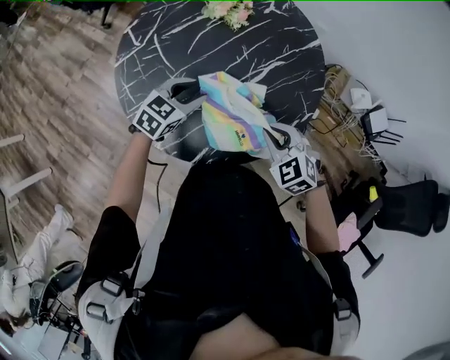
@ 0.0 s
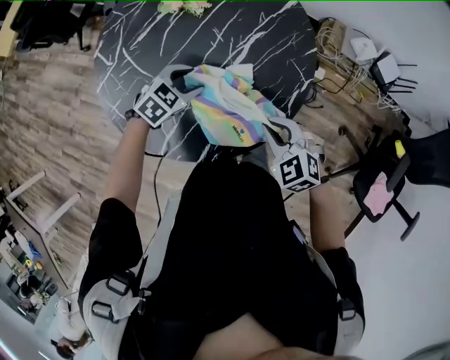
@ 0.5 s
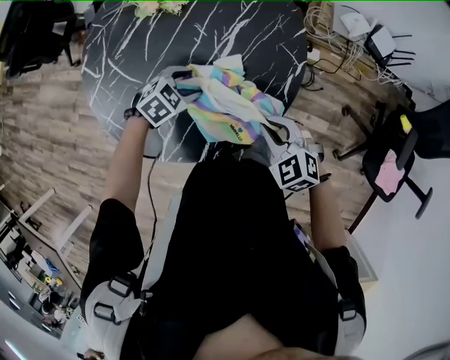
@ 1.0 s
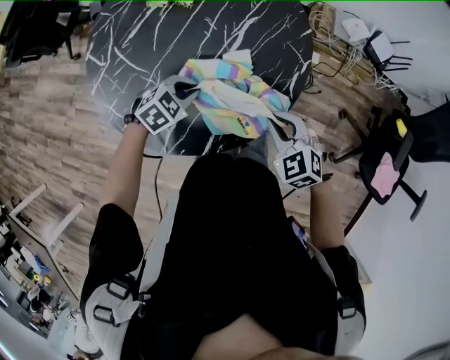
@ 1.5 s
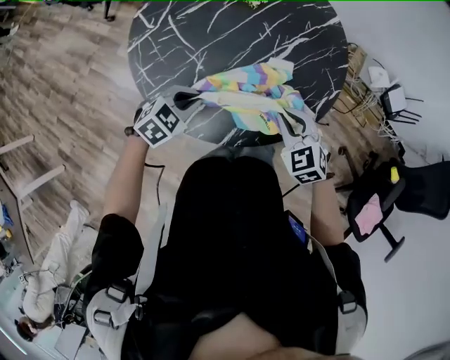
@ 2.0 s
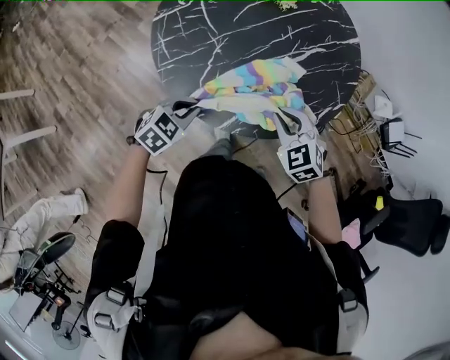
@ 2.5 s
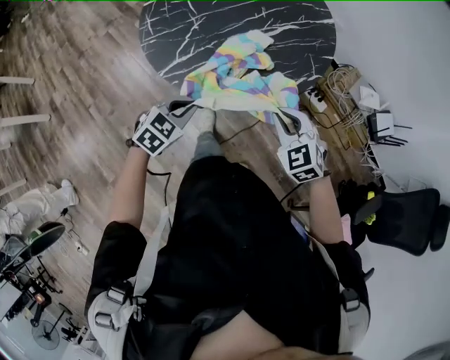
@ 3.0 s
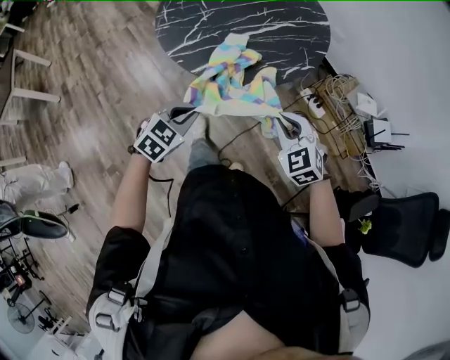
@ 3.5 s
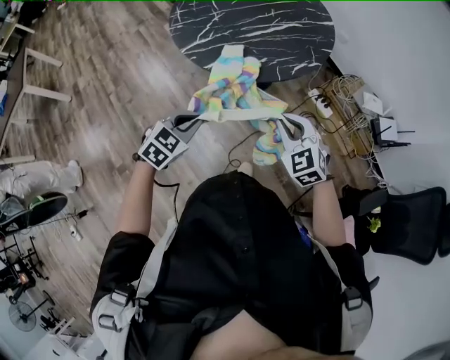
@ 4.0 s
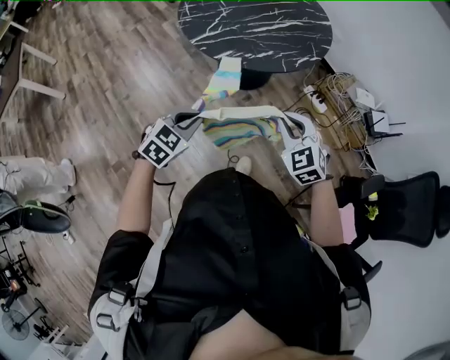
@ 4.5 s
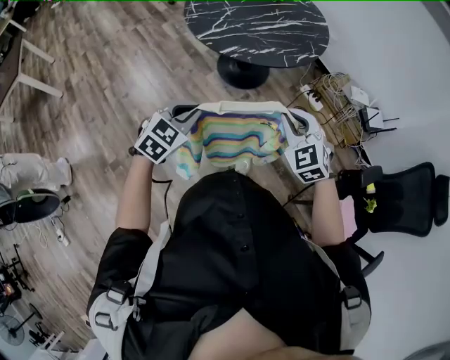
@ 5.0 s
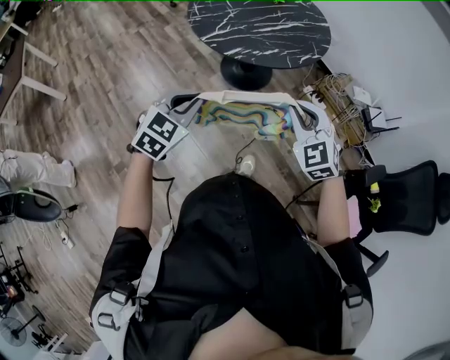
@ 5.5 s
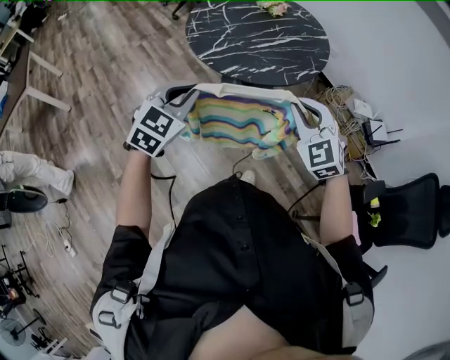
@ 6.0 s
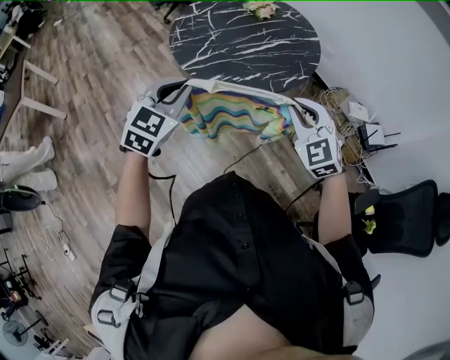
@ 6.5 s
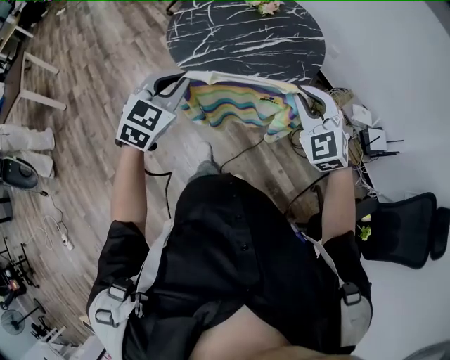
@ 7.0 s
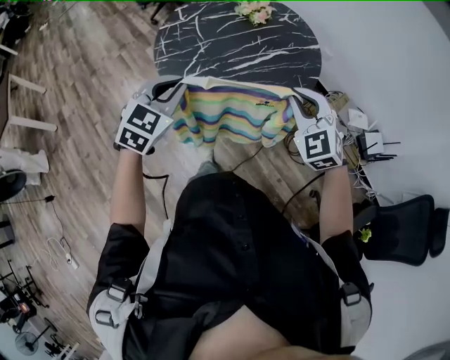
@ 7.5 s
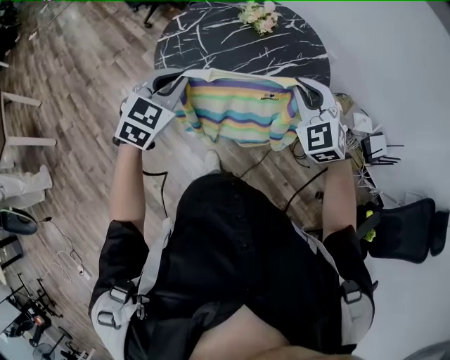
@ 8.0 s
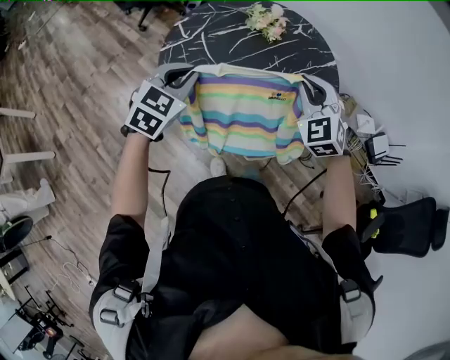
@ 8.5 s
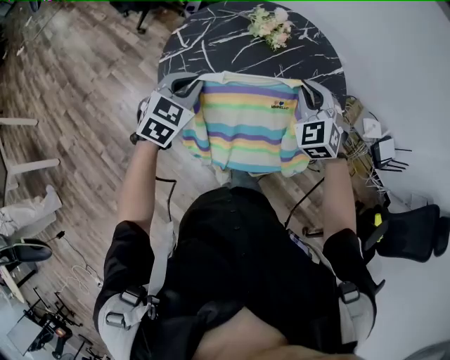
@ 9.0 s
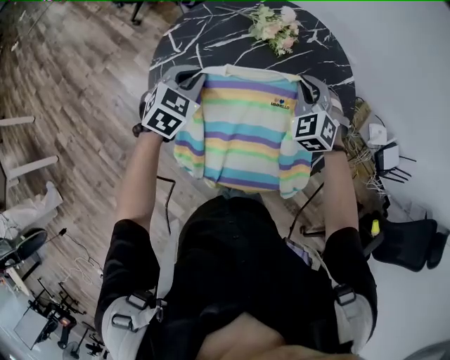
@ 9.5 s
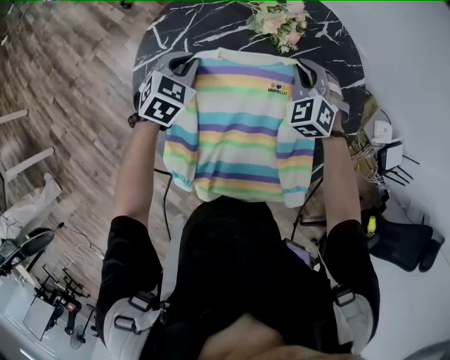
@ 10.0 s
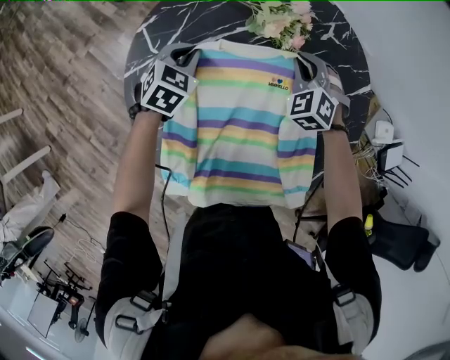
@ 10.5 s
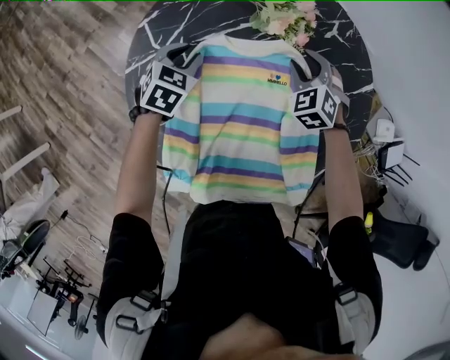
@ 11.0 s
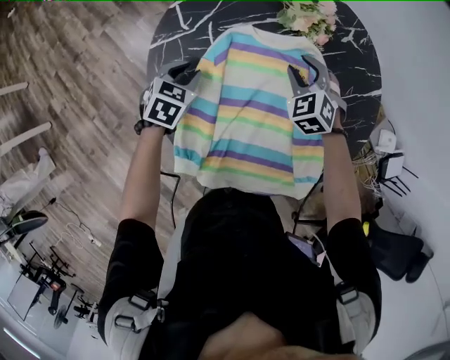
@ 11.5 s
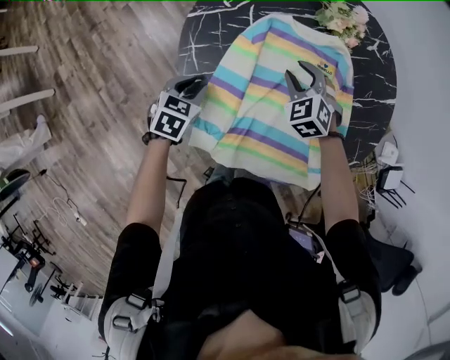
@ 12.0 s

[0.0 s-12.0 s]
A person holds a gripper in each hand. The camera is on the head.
0.0 to 2.0 s: The left gripper changes place by some 15 cm, rotates roughly 20 degrees, and closes, while the right gripper changes place by approximately 5 cm.
2.0 to 4.0 s: The left gripper moves some 40 cm, and rotates roughly 30 degrees. Meanwhile the right gripper shifts by roughly 30 cm, and turns by some 20 degrees.
4.0 to 6.0 s: Both grippers travel together upward and to the left, some 15 cm. The left gripper swivels about 20 degrees.
6.0 to 8.0 s: Both grippers travel together forward, approximately 35 cm.
8.0 to 10.0 s: Both grippers move forward and downward, roughly 40 cm.
10.0 to 12.0 s: The right gripper heads to the left and backward, covering about 20 cm, and opens up. The left gripper travels backward and to the left by roughly 25 cm, swivels roughly 30 degrees, and opens its fingers.

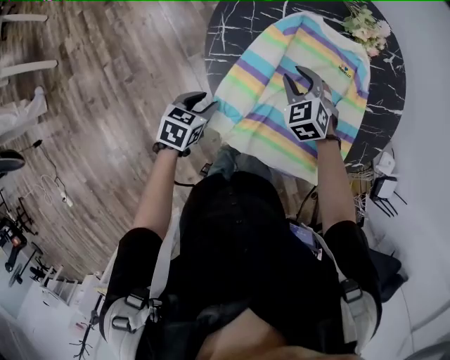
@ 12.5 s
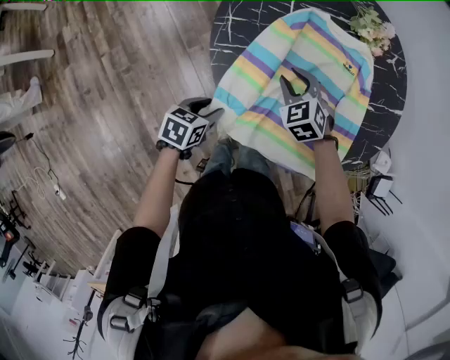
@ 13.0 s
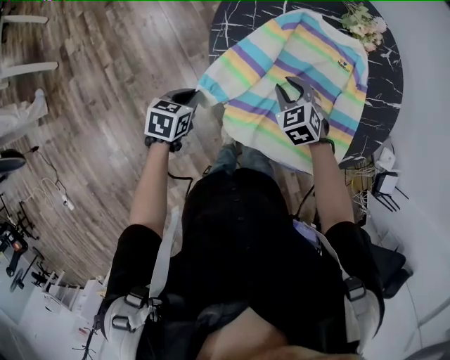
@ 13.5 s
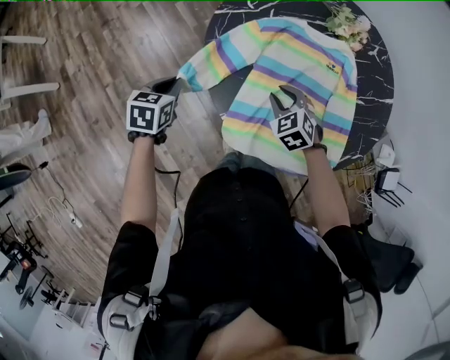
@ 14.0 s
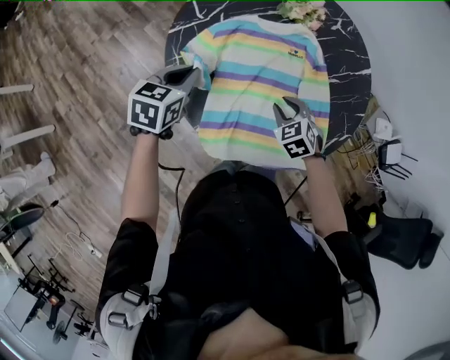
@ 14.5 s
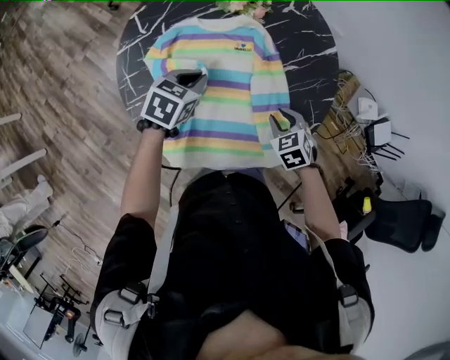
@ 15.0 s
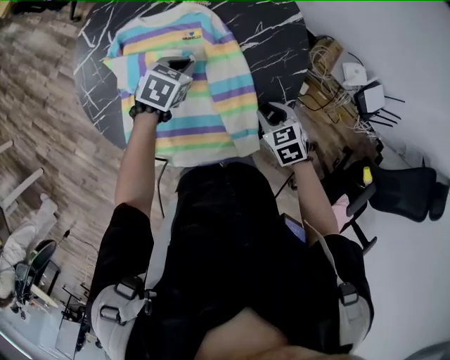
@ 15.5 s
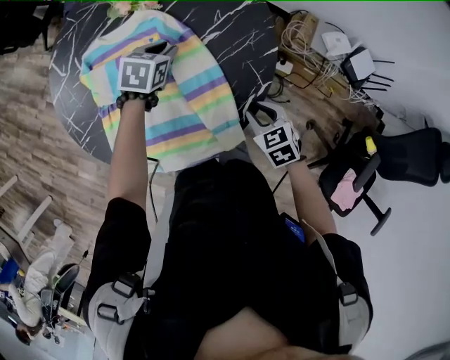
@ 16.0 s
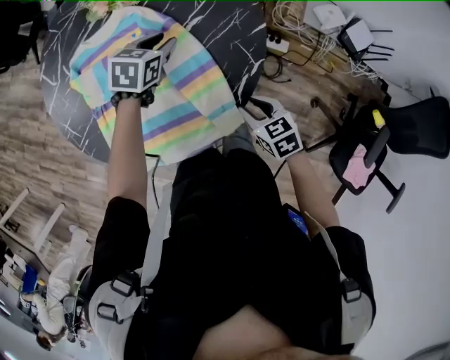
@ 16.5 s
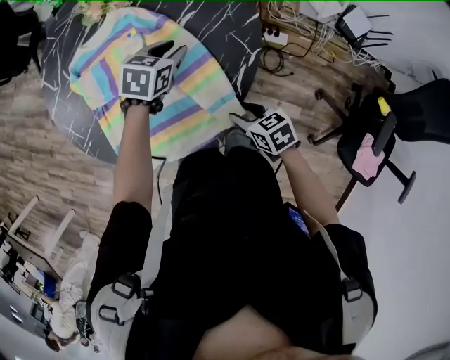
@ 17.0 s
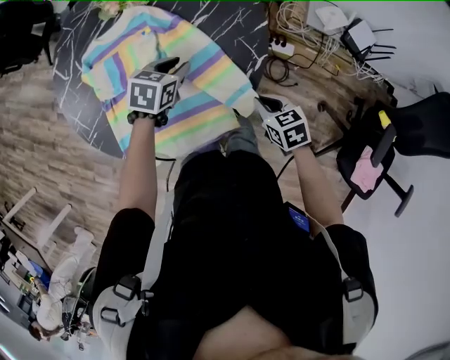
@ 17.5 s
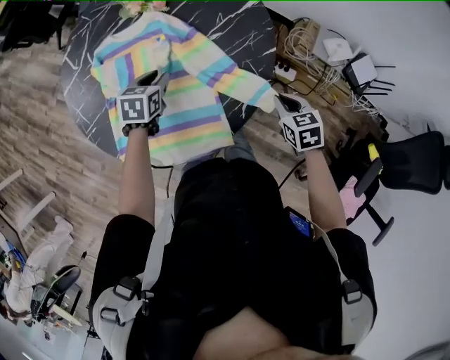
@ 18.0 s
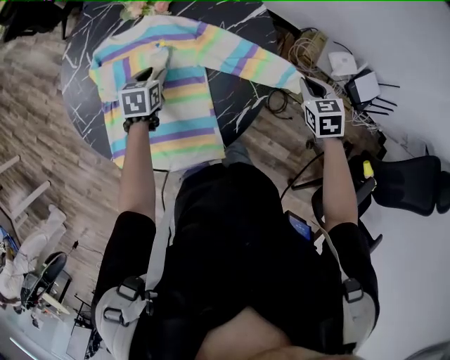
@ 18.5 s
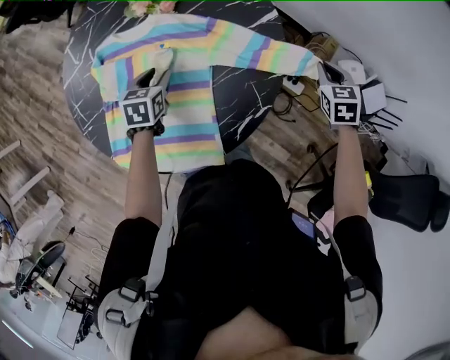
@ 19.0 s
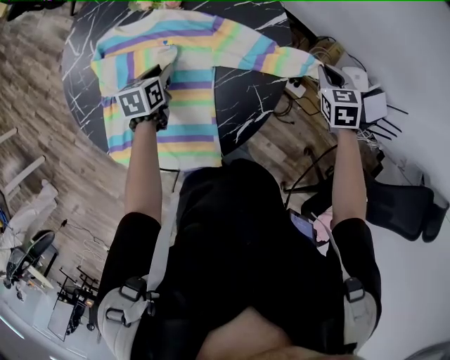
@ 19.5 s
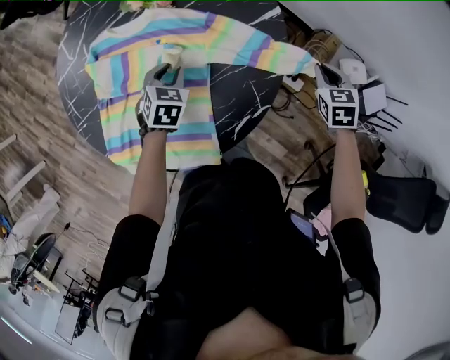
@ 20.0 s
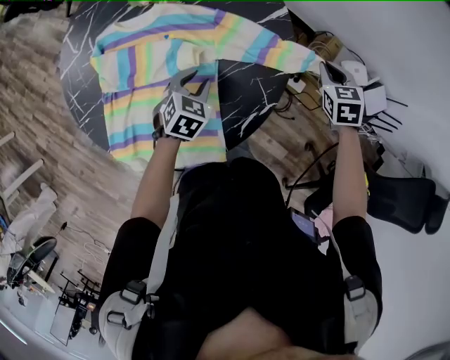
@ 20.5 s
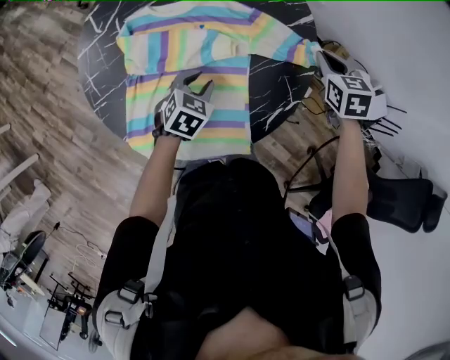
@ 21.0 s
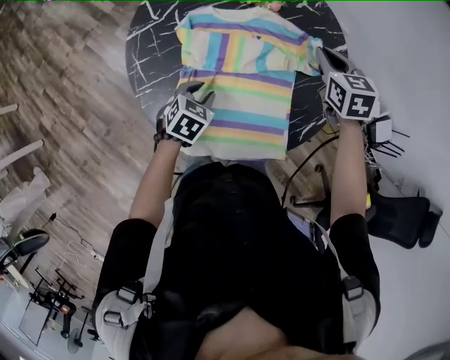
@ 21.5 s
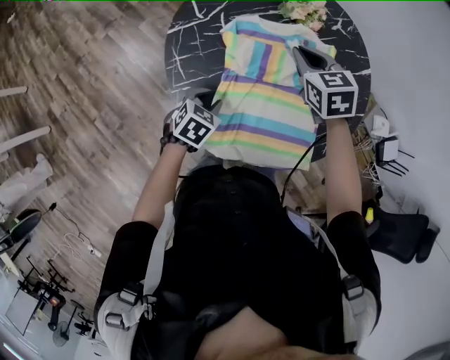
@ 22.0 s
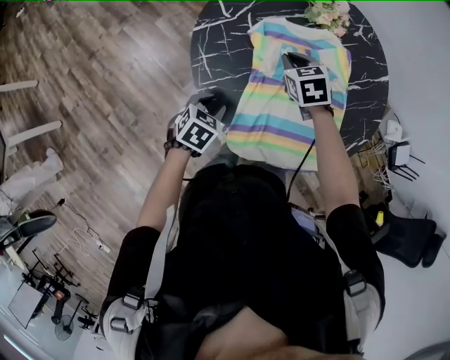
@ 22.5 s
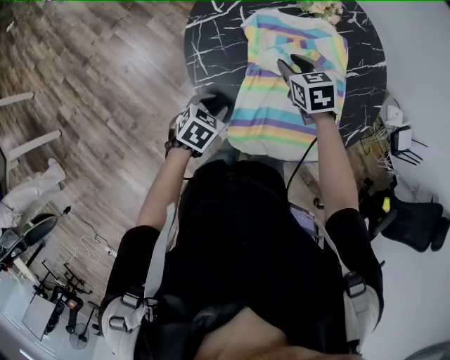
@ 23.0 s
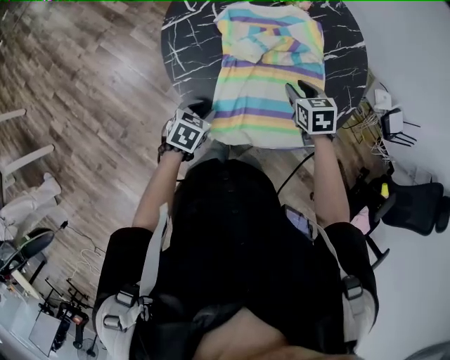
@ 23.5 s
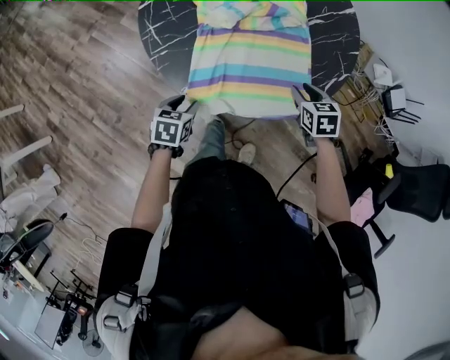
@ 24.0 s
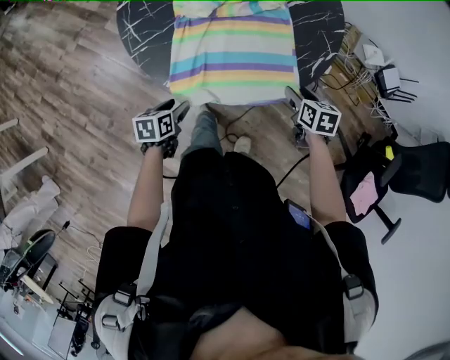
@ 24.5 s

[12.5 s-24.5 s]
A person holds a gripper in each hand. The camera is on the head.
12.5 to 14.5 s: The right gripper travels to the right and backward by about 15 cm, and turns by roughly 20 degrees, while the left gripper shifts some 20 cm upward and forward, swivels roughly 20 degrees, and closes.
14.5 to 16.5 s: The right gripper travels to the right by some 25 cm, and twists approximately 40 degrees clockwise, seen from behind; the left gripper goes about 40 cm to the right and forward, changes its angle by approximately 30 degrees, and opens its fingers.
16.5 to 18.5 s: The left gripper goes about 10 cm to the left, and changes its angle by about 30 degrees. Meanwhile the right gripper heads forward and to the right, covering about 25 cm, and closes up.
18.5 to 20.5 s: The right gripper heads forward, covering approximately 10 cm; the left gripper travels to the right by roughly 10 cm, and swivels approximately 20 degrees.
20.5 to 22.5 s: The two grippers travel together, to the left, roughly 50 cm.
22.5 to 24.5 s: The left gripper goes some 20 cm backward, to the right and downward, and turns by roughly 30 degrees, while the right gripper travels to the right and backward by some 40 cm, rotates approximately 40 degrees, and opens up.

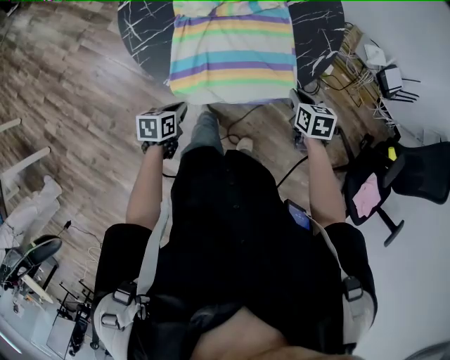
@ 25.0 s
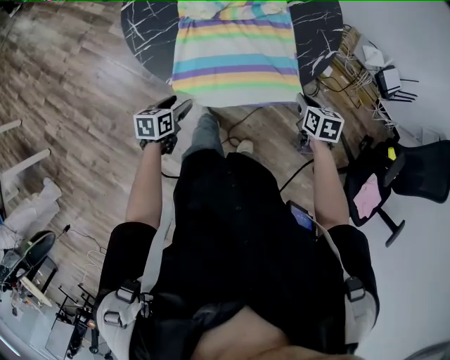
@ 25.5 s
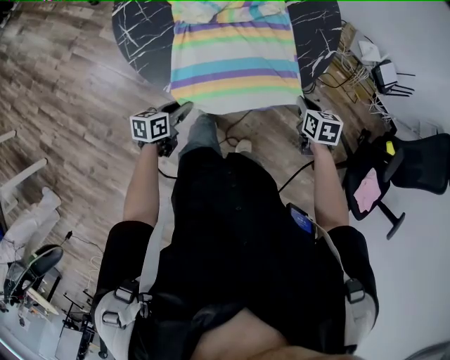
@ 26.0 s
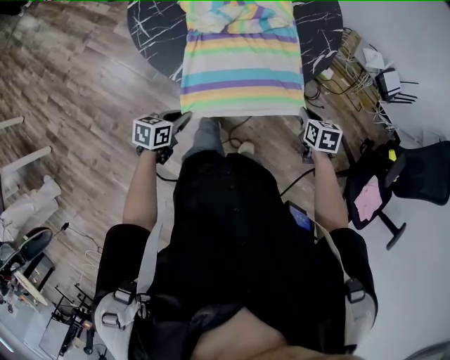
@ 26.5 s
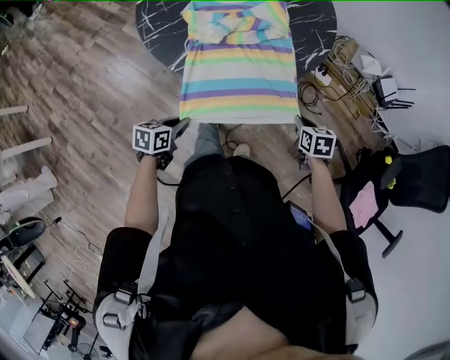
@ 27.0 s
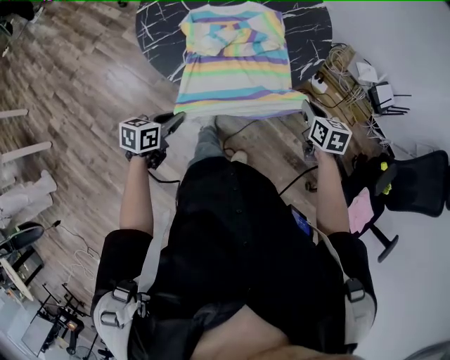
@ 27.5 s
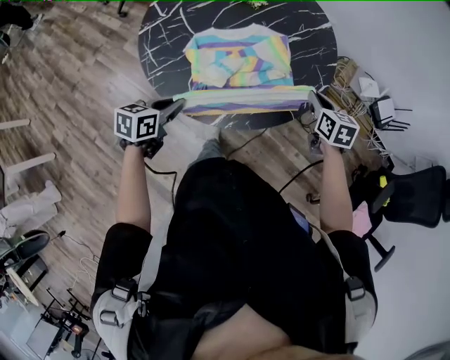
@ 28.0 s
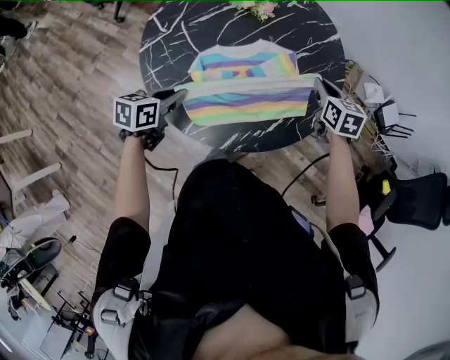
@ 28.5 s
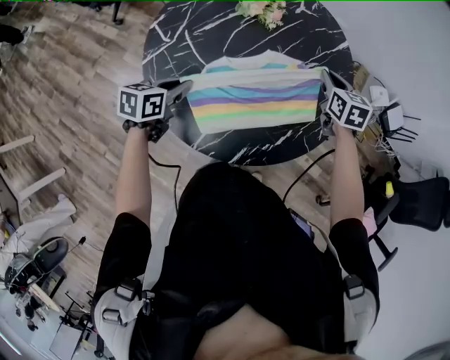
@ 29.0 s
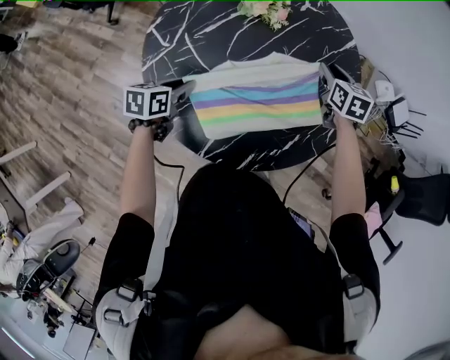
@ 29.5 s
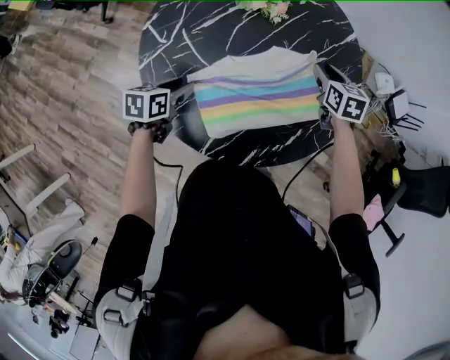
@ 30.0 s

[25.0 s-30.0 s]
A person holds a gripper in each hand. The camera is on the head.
25.0 to 27.5 s: The right gripper heads upward and to the right, covering approximately 10 cm, and moves about 10 cm backward and comes back; the left gripper goes about 10 cm upward, moves about 10 cm backward and comes back, and opens, then closes again.
27.5 to 30.0 s: Both grippers travel together forward and to the left, approximately 35 cm. The left gripper opens. The right gripper opens.
